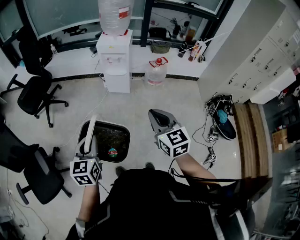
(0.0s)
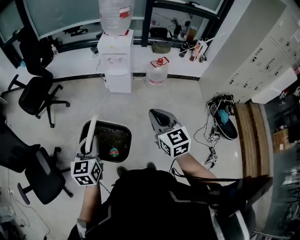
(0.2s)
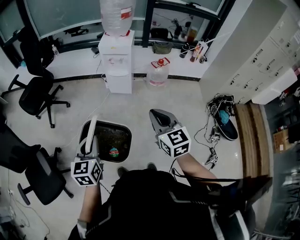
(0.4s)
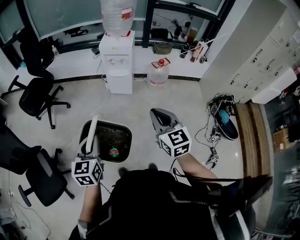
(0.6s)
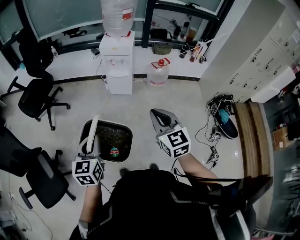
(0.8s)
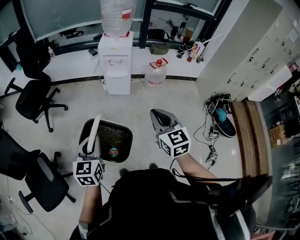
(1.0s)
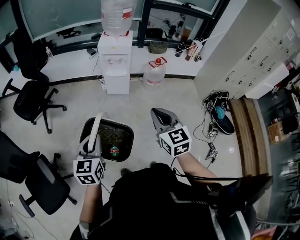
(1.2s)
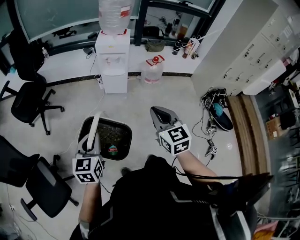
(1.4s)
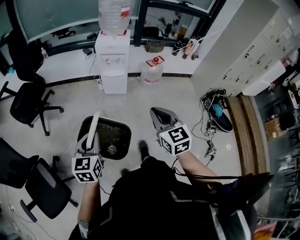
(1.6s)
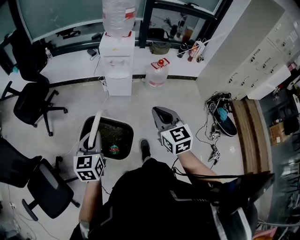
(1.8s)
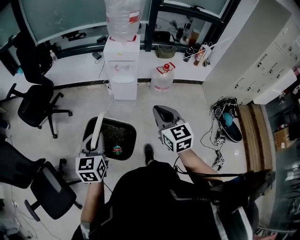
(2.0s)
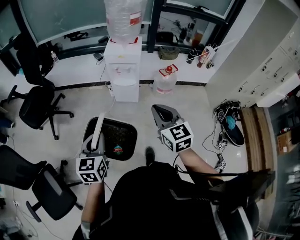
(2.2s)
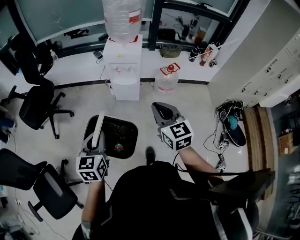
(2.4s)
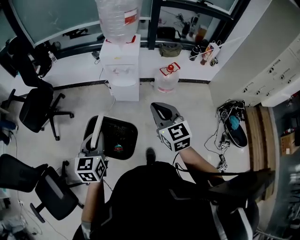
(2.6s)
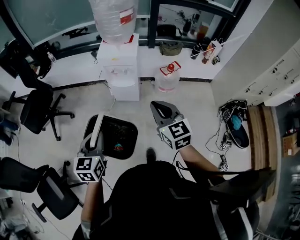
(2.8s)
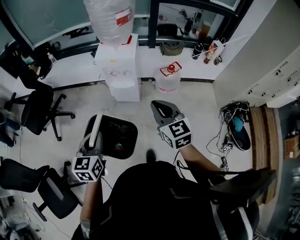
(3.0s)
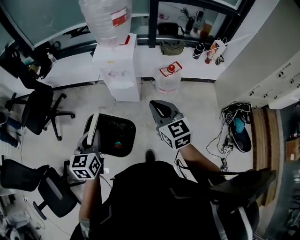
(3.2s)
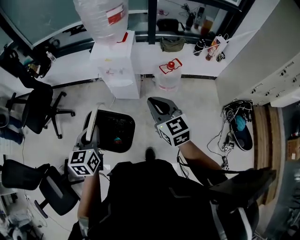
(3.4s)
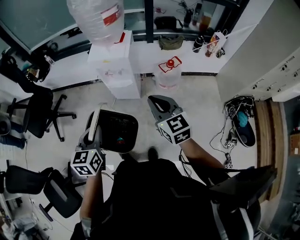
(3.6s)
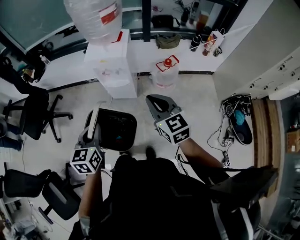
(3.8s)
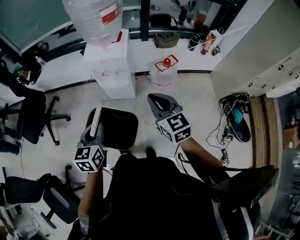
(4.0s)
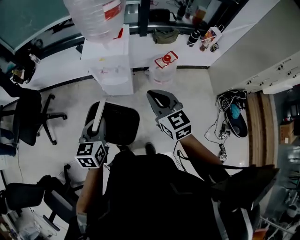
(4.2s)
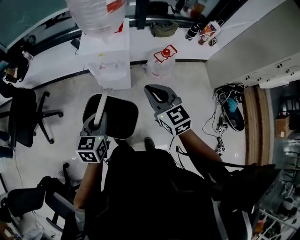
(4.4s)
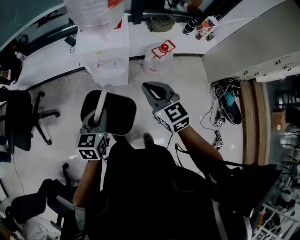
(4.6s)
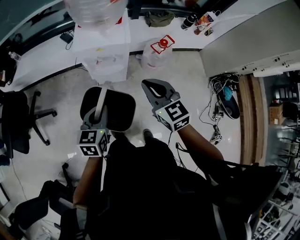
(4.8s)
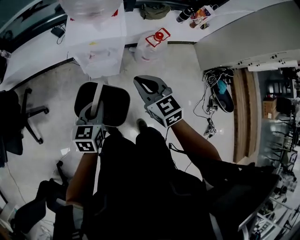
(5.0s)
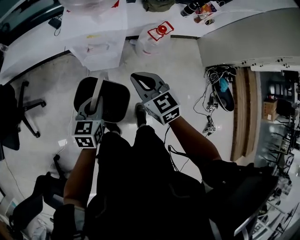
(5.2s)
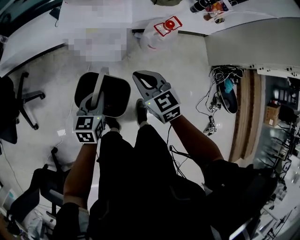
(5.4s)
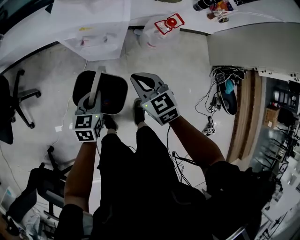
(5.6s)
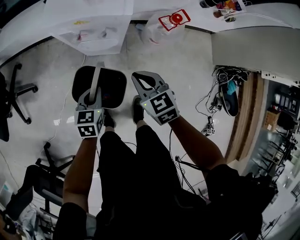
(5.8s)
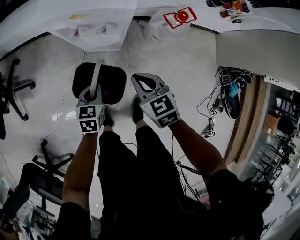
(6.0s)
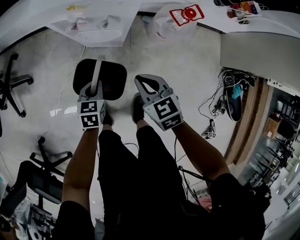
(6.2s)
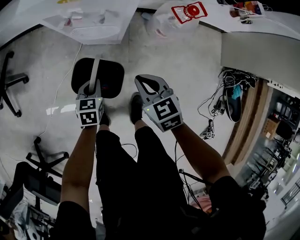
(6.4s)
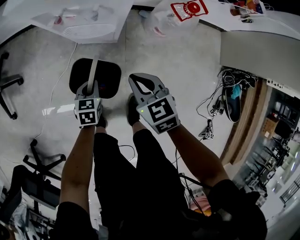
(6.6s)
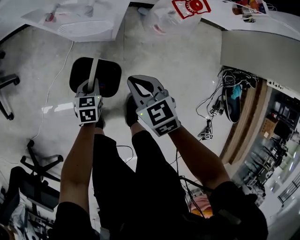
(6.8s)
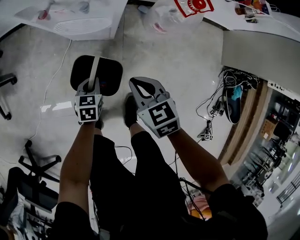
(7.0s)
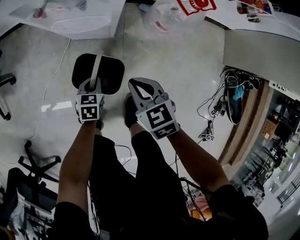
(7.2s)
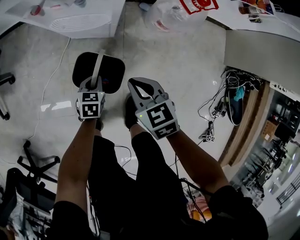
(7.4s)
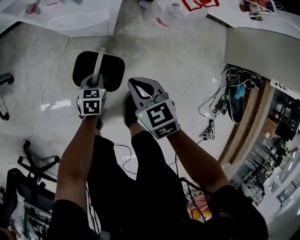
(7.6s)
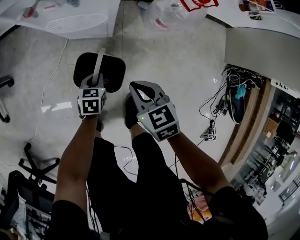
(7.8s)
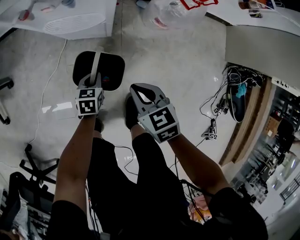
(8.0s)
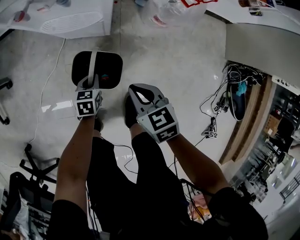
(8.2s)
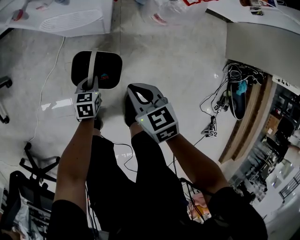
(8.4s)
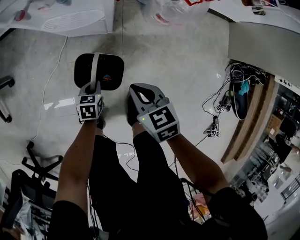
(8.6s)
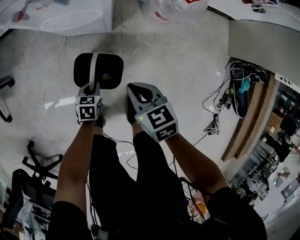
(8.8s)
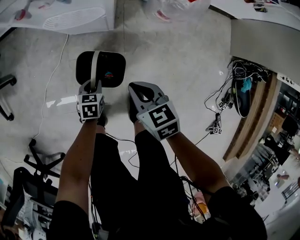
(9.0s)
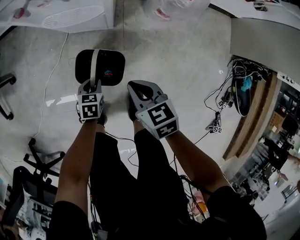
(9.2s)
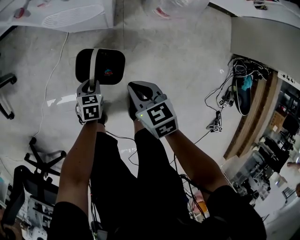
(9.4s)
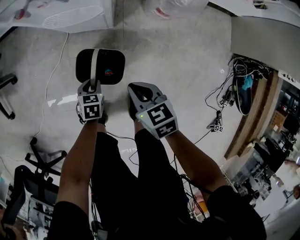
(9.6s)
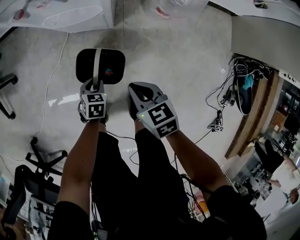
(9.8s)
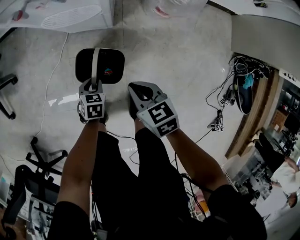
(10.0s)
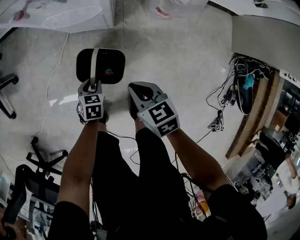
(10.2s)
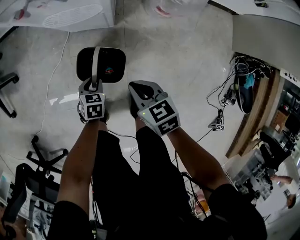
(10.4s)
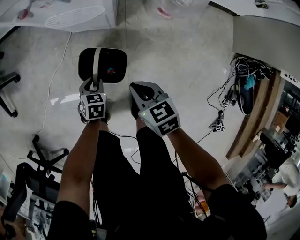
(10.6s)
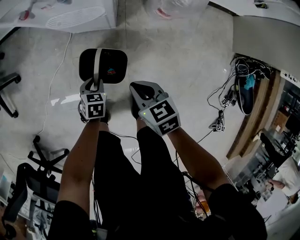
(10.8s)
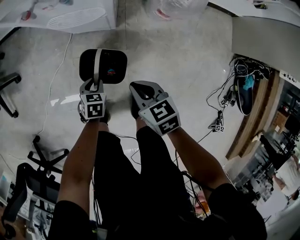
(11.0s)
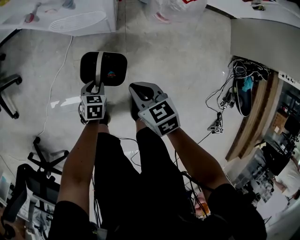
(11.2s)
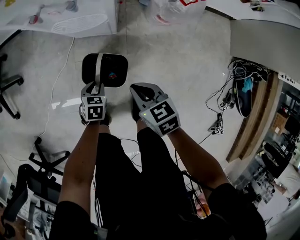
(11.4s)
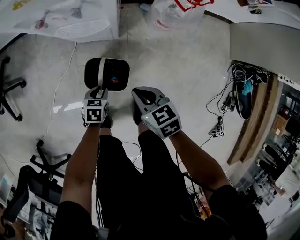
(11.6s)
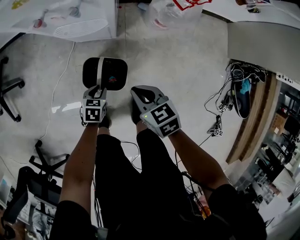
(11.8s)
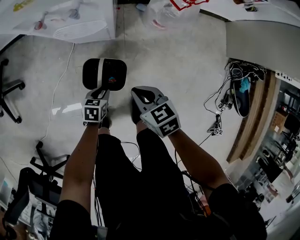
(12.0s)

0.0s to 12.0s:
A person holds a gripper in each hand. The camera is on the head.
0.0s to 1.6s: The right gripper shifts some 10 cm to the left. Meanwhile the left gripper moves to the left and forward, approximately 10 cm.
1.6s to 3.0s: The left gripper heads forward and to the right, covering roughly 25 cm. The right gripper heads forward, covering some 25 cm.
3.0s to 4.4s: Both grippers travel together forward, about 15 cm.
4.4s to 6.0s: The two grippers go about 30 cm downward. The right gripper turns by about 20 degrees.
6.0s to 7.6s: The two grippers go approximately 25 cm downward.
7.6s to 9.0s: The left gripper changes place by roughly 5 cm.
9.0s to 12.0s: The grippers stay close to where they were, moving slightly.

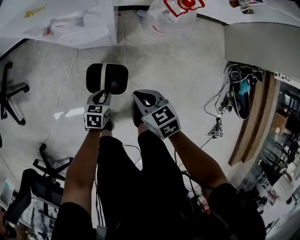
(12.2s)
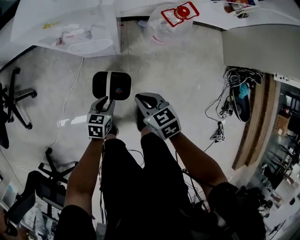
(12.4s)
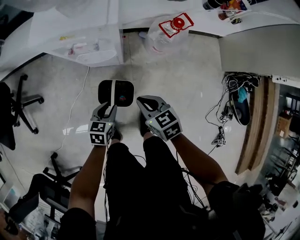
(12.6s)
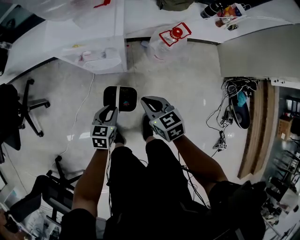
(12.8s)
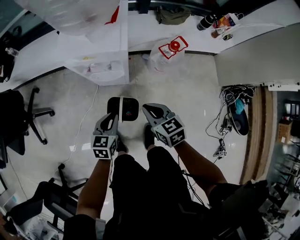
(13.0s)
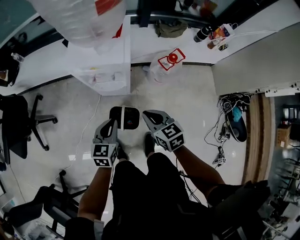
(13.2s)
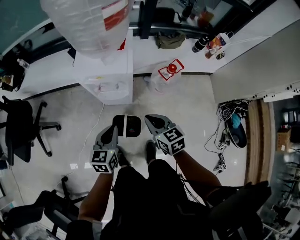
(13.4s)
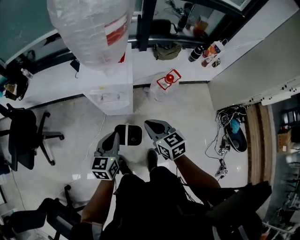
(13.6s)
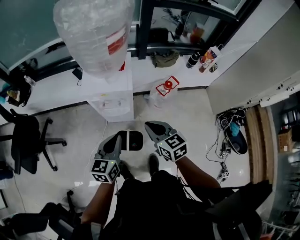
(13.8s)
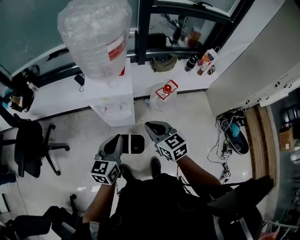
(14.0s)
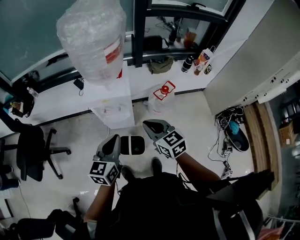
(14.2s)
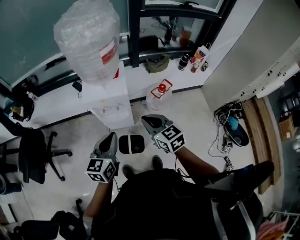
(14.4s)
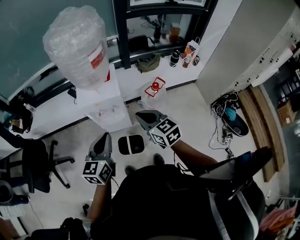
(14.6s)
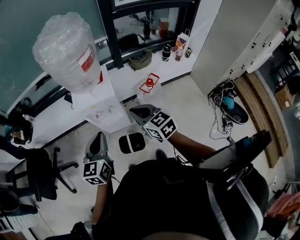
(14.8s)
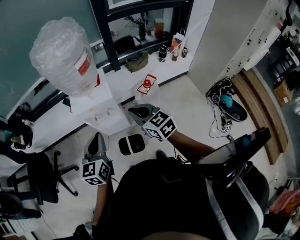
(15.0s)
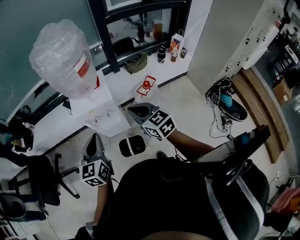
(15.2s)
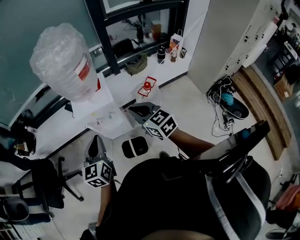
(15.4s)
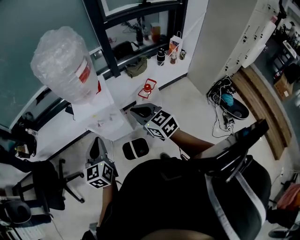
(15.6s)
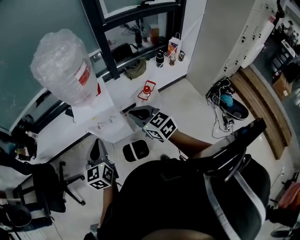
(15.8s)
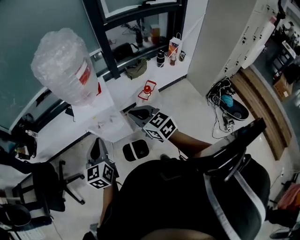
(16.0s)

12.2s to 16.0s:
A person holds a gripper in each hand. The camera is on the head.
12.2s to 13.4s: Both grippers move upward, some 35 cm. The left gripper tilts its fingers roughly 30 degrees upward, and closes its fingers.
13.4s to 14.8s: Both grippers travel together upward, some 20 cm.
14.8s to 16.0s: The grippers move only a little.

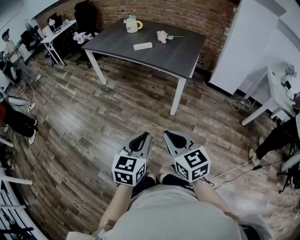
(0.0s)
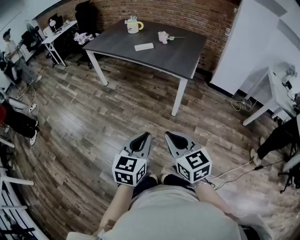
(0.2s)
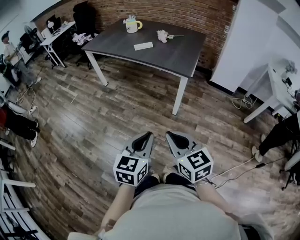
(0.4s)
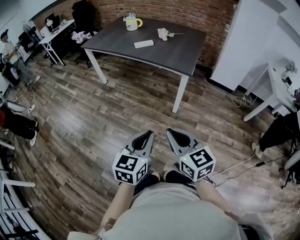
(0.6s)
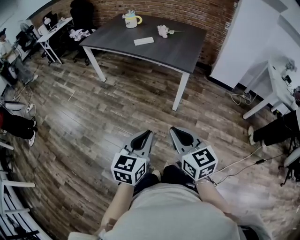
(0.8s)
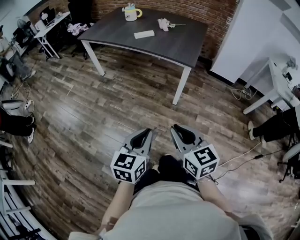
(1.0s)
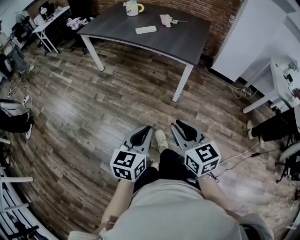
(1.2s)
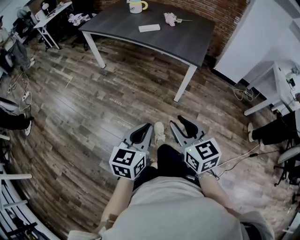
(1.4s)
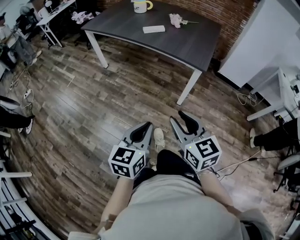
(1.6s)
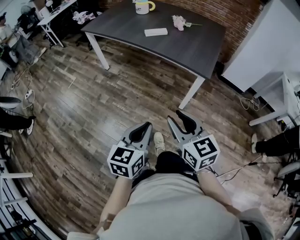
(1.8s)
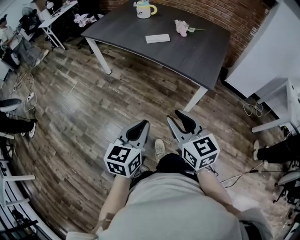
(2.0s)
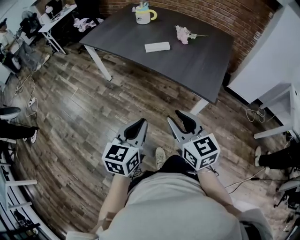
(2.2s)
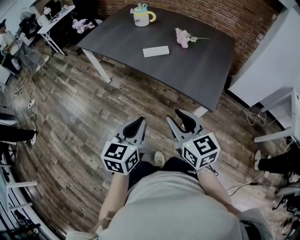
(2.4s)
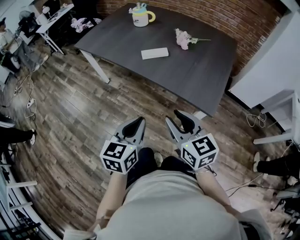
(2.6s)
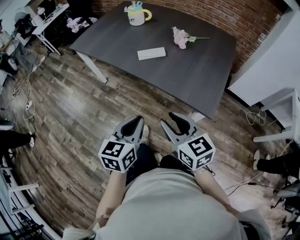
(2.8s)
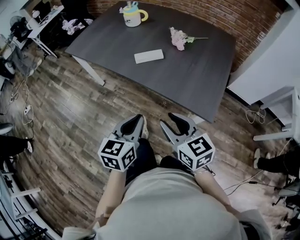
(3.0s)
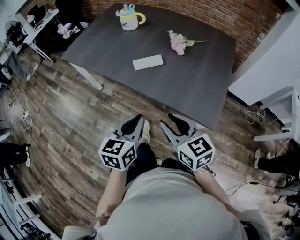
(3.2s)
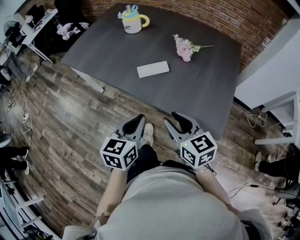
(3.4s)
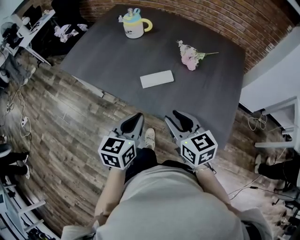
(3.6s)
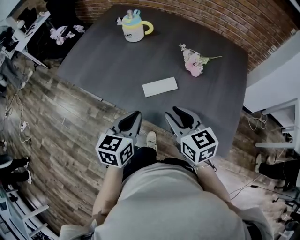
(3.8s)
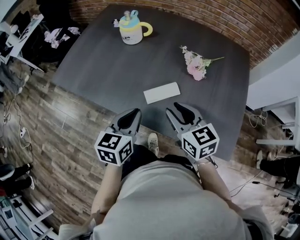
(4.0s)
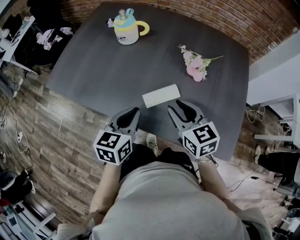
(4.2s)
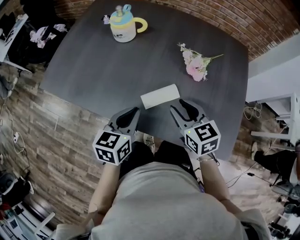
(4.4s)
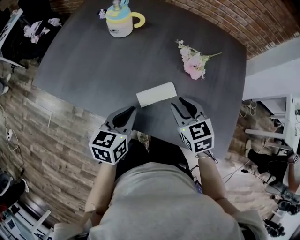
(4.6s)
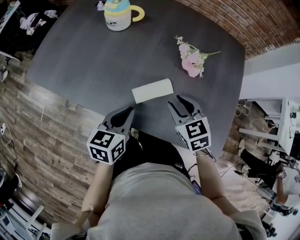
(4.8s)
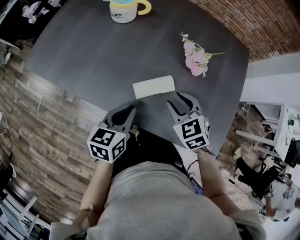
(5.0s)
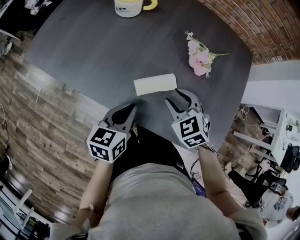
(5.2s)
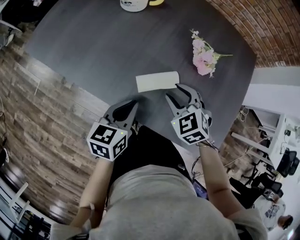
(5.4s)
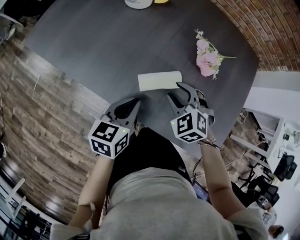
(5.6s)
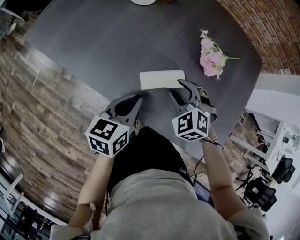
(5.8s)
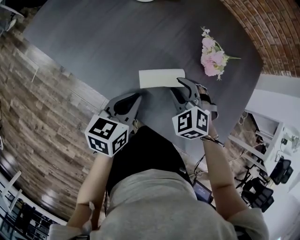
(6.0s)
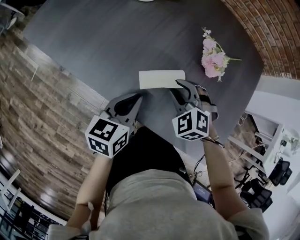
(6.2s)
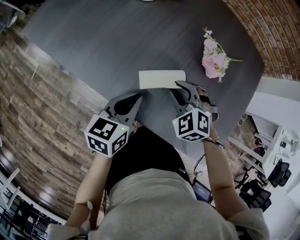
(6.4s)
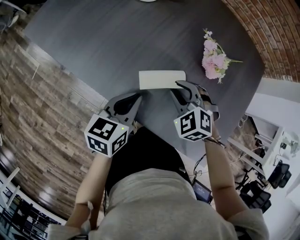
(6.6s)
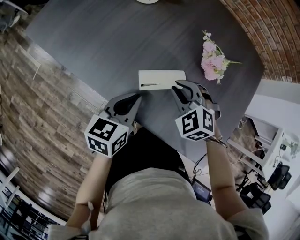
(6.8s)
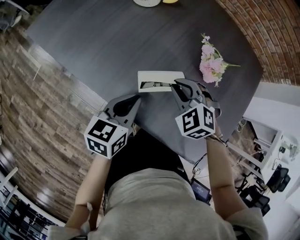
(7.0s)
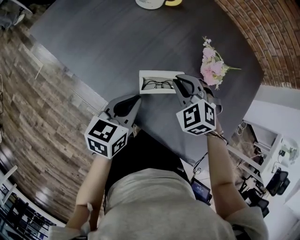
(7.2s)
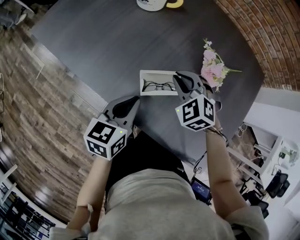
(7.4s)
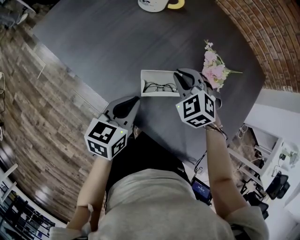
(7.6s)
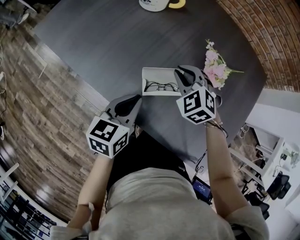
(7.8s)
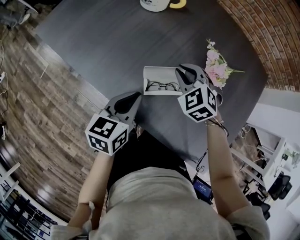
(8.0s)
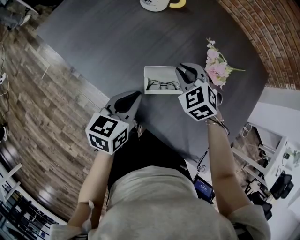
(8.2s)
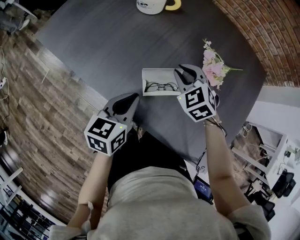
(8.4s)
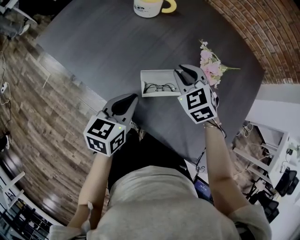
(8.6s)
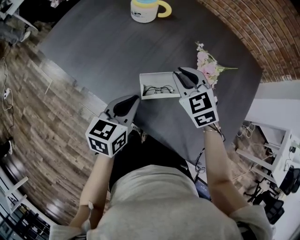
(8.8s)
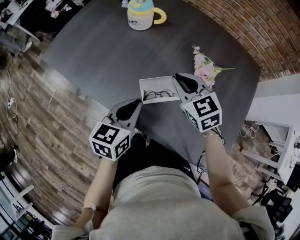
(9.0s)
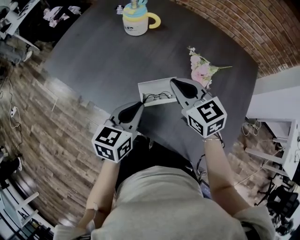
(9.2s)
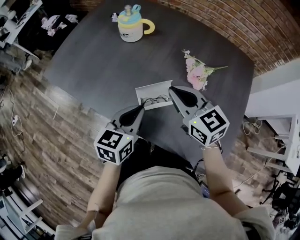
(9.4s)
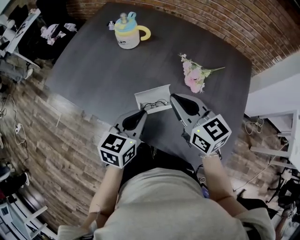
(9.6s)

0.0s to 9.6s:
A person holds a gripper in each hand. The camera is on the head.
0.0s to 1.6s: The left gripper shifts approximately 10 cm forward and to the left. The right gripper is displaced forward by approximately 10 cm, and opens its fingers.
1.6s to 3.2s: The two grippers go about 40 cm forward.
3.2s to 4.8s: Both grippers move forward, about 30 cm. The right gripper turns by about 30 degrees.
4.8s to 6.4s: The right gripper travels downward by some 5 cm, and twists approximately 40 degrees counterclockwise, seen from behind.
6.4s to 8.0s: The right gripper is displaced forward by approximately 10 cm.
8.0s to 9.6s: The right gripper is displaced upward and backward by about 15 cm, and points its fingers approximately 30 degrees further upward, while the left gripper is displaced upward by some 5 cm.
